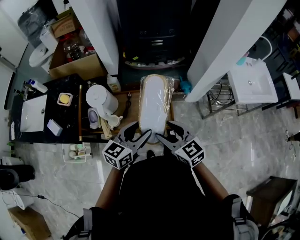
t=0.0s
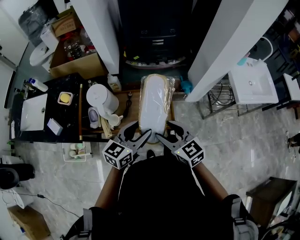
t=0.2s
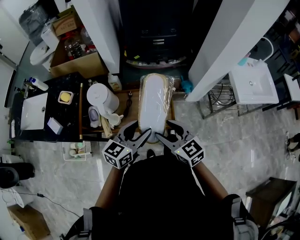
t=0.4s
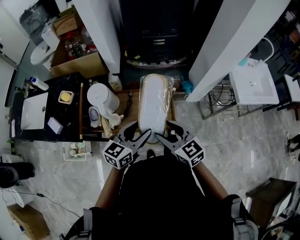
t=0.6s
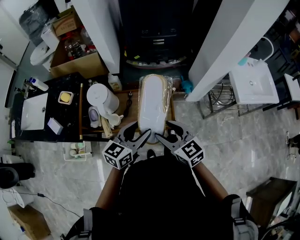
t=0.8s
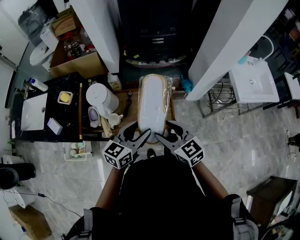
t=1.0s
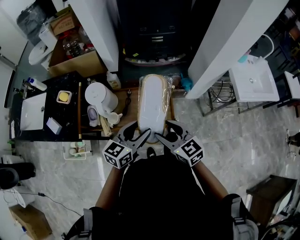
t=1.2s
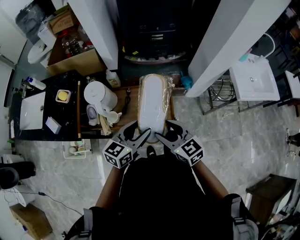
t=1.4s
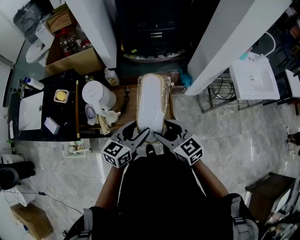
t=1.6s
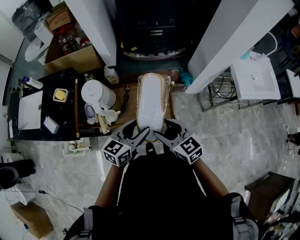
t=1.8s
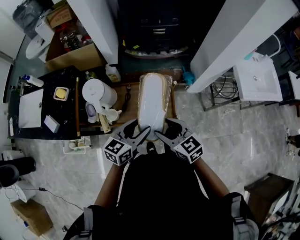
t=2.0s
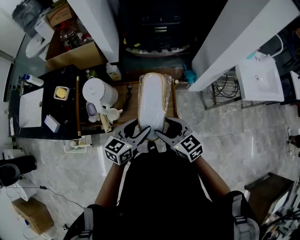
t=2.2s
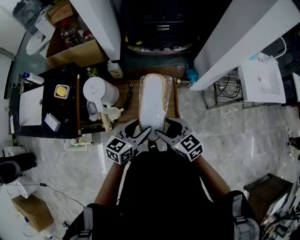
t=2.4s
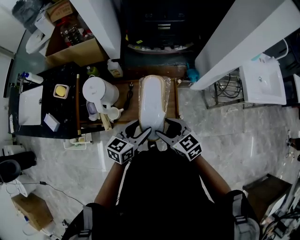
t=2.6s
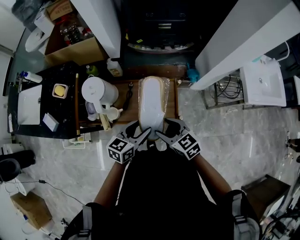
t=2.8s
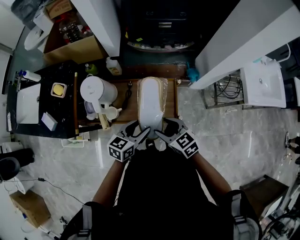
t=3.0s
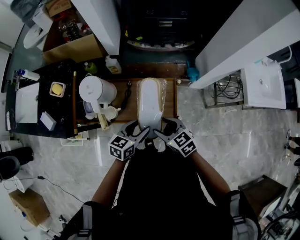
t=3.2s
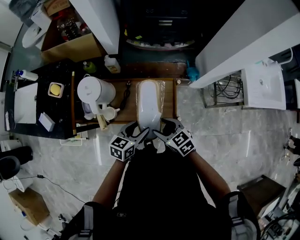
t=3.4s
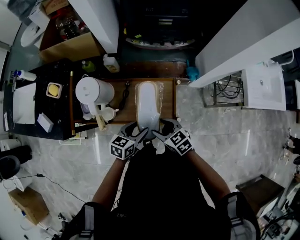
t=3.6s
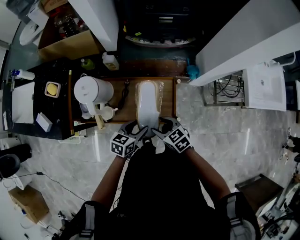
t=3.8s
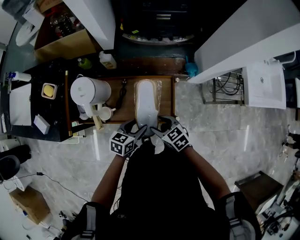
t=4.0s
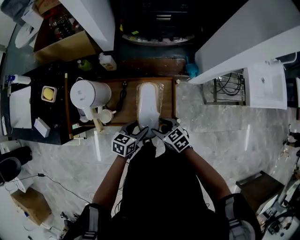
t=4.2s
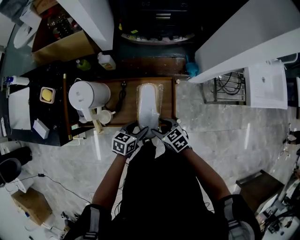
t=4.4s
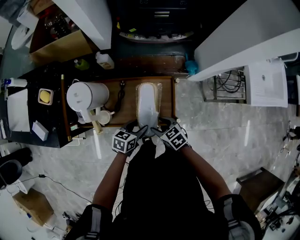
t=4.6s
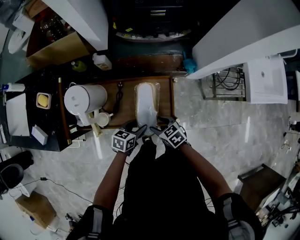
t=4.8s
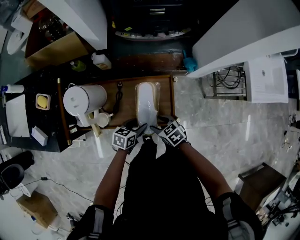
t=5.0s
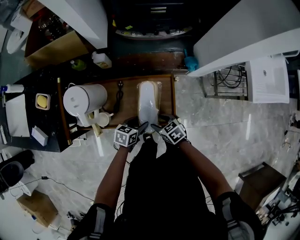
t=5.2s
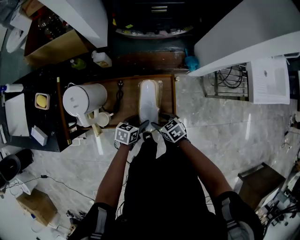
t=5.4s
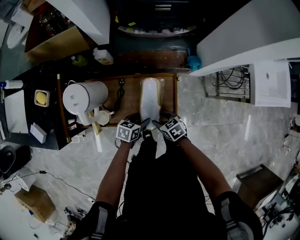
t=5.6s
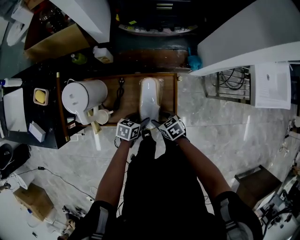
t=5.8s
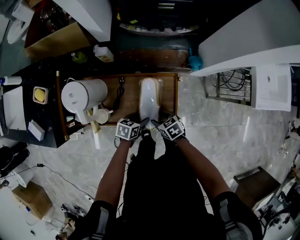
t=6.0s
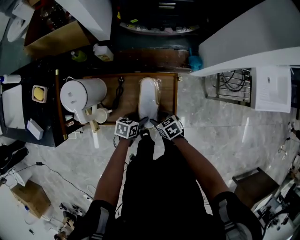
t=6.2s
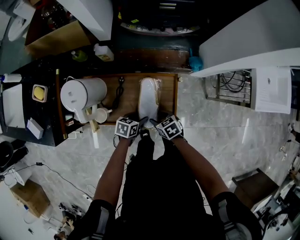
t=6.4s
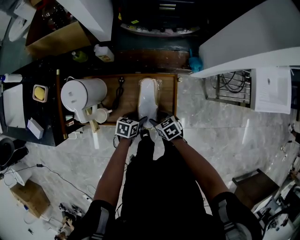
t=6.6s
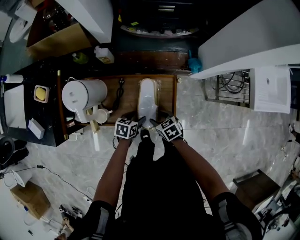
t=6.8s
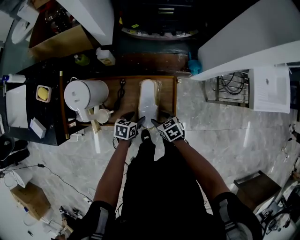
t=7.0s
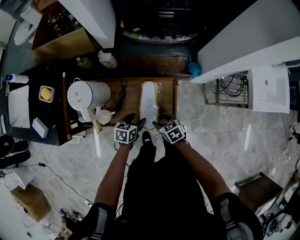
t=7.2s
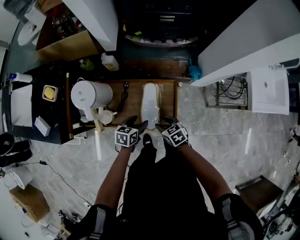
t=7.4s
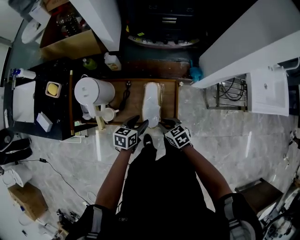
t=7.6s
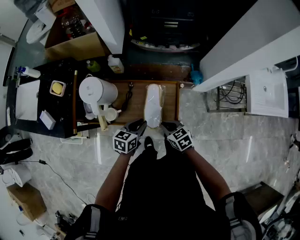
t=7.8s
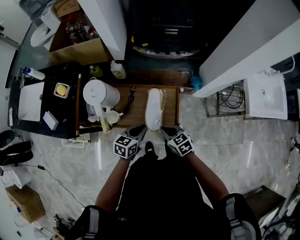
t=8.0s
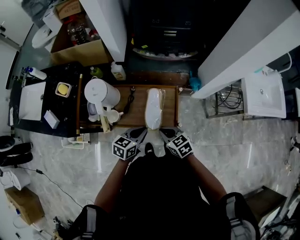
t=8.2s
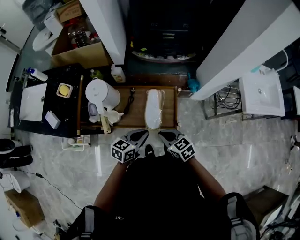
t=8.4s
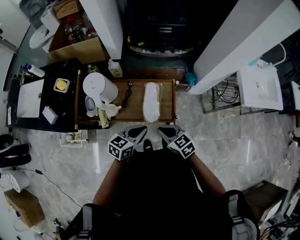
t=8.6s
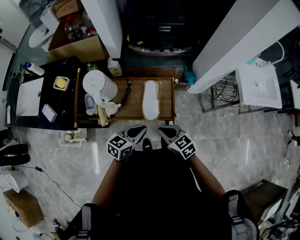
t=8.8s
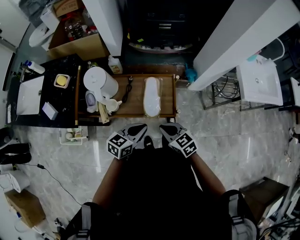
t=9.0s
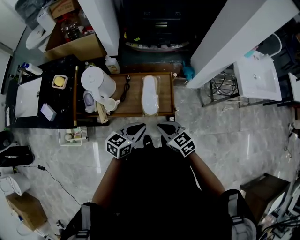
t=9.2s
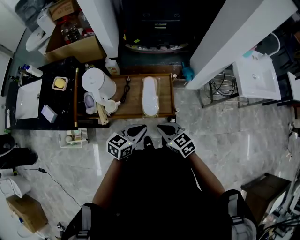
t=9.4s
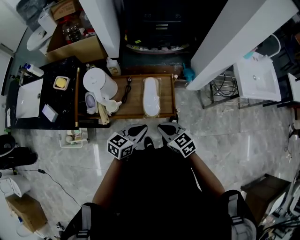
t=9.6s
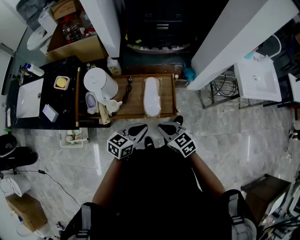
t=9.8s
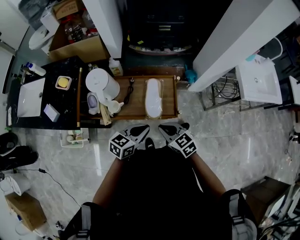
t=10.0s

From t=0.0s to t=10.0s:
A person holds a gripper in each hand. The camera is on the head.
From t=0.0s to t=1.4s: There are only small adjustments of the grippers.
From t=1.4s to t=2.8s: The grippers both shift downward by approximately 10 cm.
From t=2.8s to t=4.2s: Both grippers travel together downward, approximately 15 cm.
From t=4.2s to t=5.8s: The grippers both shift downward by some 10 cm.
From t=5.8s to t=7.2s: The grippers move only a little.
From t=7.2s to t=8.6s: Both grippers travel together upward and backward, roughly 20 cm. The right gripper swivels approximately 20 degrees, and closes up. The left gripper turns by approximately 30 degrees, and closes up.
From t=8.6s to t=10.0s: The grippers stay close to where they were, moving slightly.

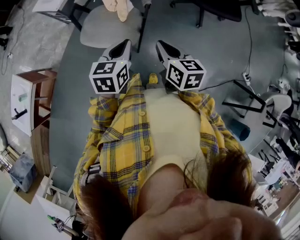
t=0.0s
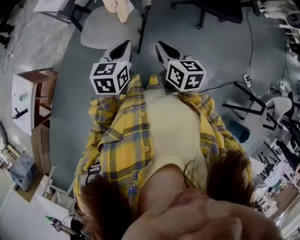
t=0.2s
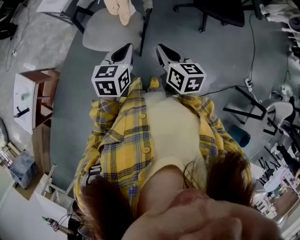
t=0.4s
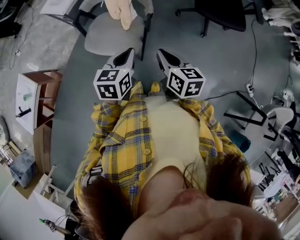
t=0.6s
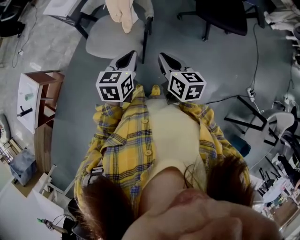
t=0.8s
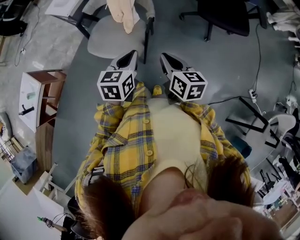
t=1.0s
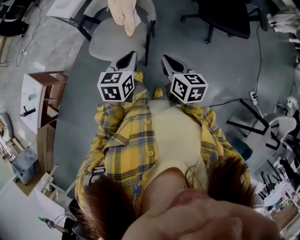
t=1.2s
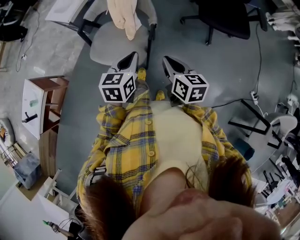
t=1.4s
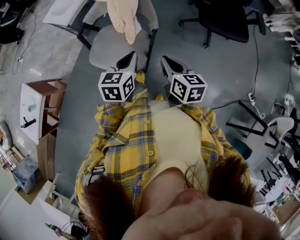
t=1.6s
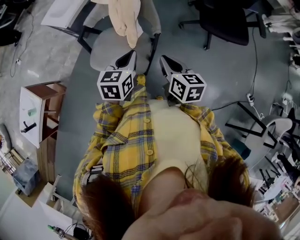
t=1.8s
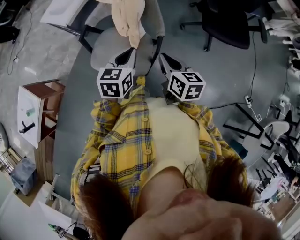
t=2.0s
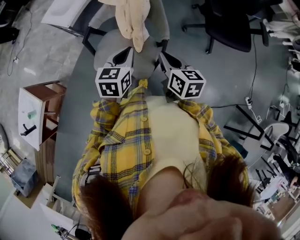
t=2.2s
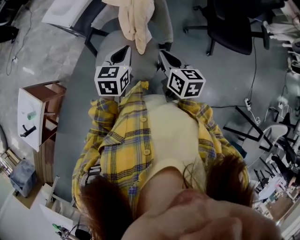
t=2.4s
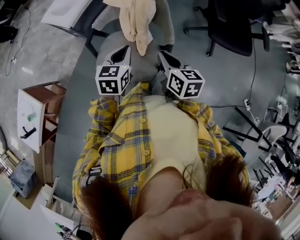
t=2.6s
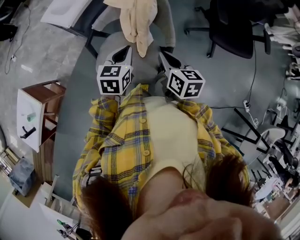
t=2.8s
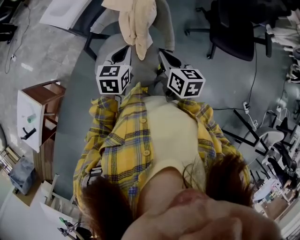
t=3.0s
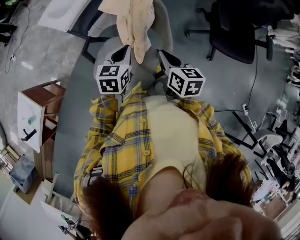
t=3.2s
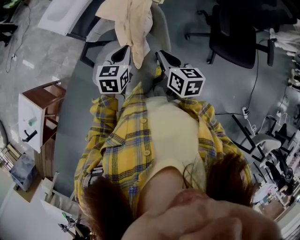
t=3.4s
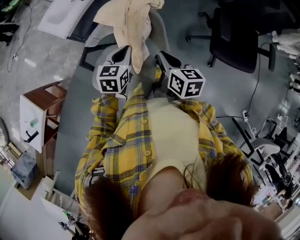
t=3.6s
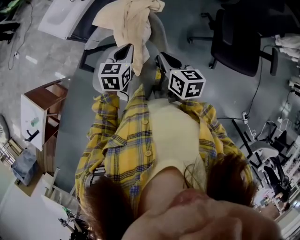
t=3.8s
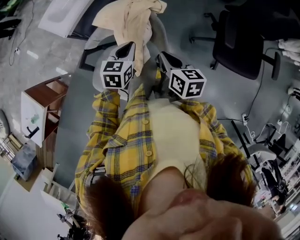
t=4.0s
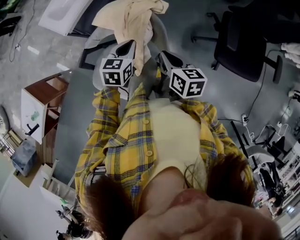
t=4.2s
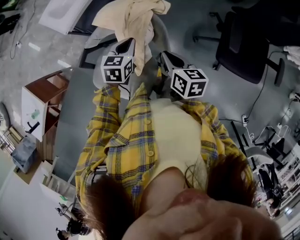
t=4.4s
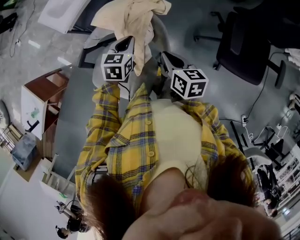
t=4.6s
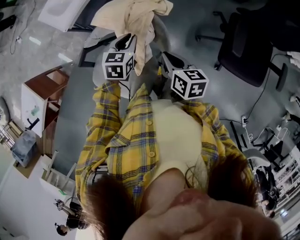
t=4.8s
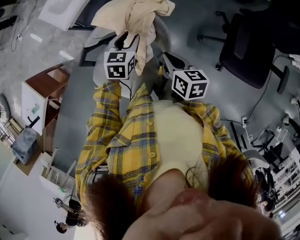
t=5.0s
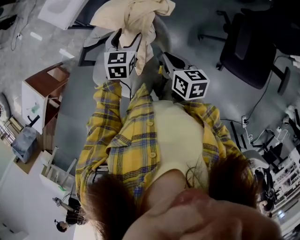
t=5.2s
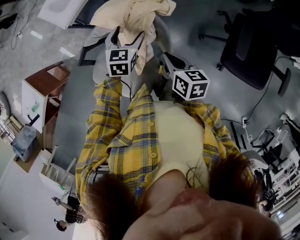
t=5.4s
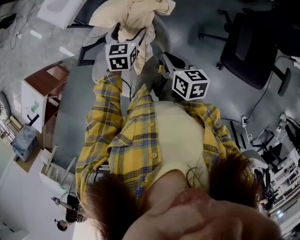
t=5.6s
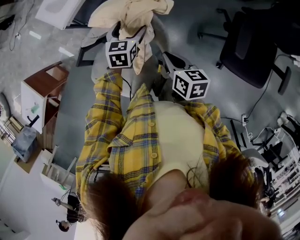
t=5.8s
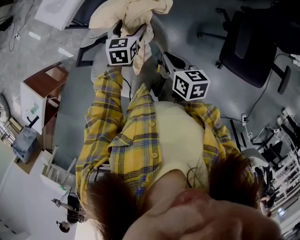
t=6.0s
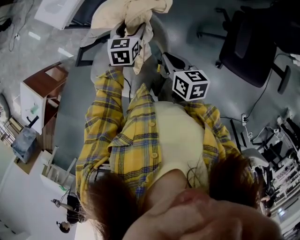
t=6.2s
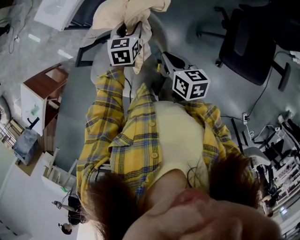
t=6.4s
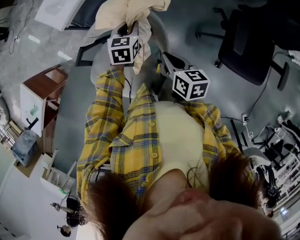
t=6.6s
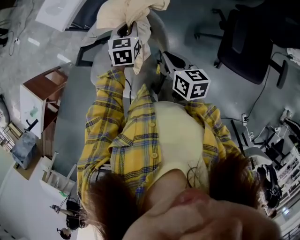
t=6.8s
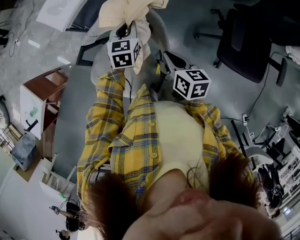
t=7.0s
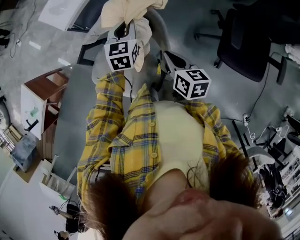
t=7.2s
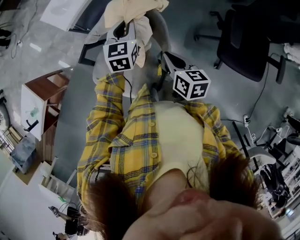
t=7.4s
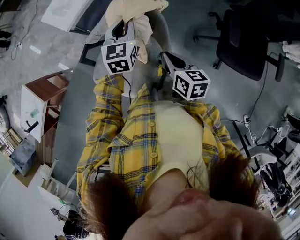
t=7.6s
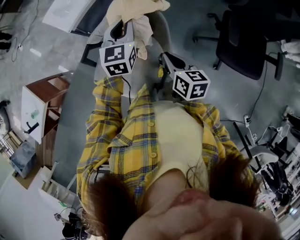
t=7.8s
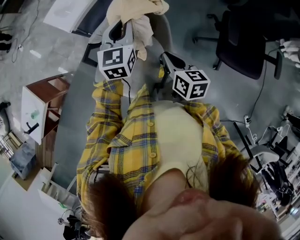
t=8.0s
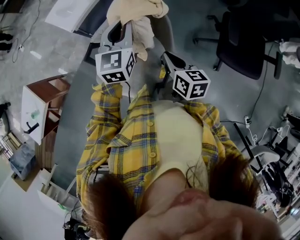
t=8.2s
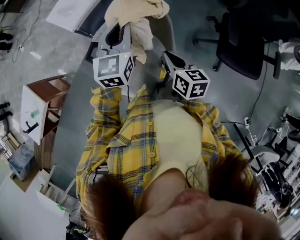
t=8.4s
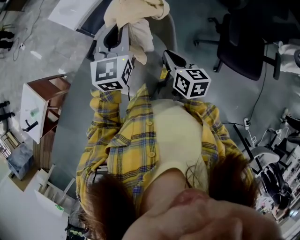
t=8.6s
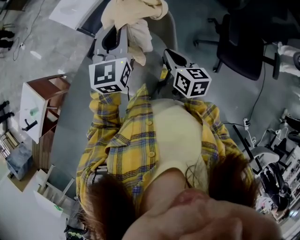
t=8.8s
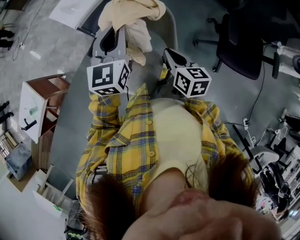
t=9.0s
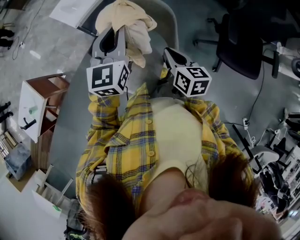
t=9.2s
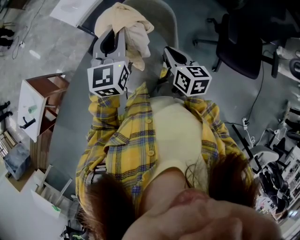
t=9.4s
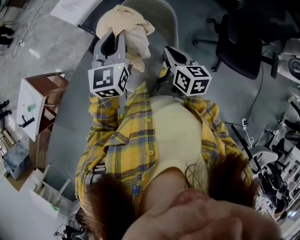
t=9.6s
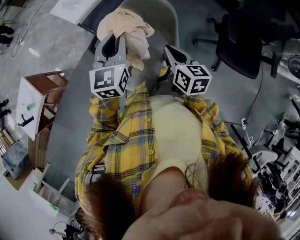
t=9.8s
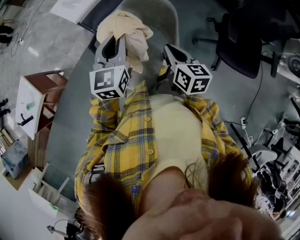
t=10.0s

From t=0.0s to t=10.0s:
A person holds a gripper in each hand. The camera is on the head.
From t=0.0s to t=1.4s: The left gripper goes about 5 cm forward; the right gripper ends up approximately 5 cm from where it was.
From t=1.4s to t=2.8s: The two grippers go some 25 cm forward and to the left.
From t=2.8s to t=4.2s: Both grippers travel together forward and to the right, roughly 20 cm.
From t=4.2s to t=5.8s: The left gripper moves forward and downward, approximately 10 cm, and opens its fingers, while the right gripper shifts by about 5 cm.
From t=5.8s to t=7.2s: The left gripper moves upward, roughly 5 cm, and closes; the right gripper moves approximately 5 cm.
From t=7.2s to t=8.6s: The right gripper heads upward, covering approximately 5 cm. Meanwhile the left gripper is displaced upward and backward by about 20 cm.
From t=8.6s to t=10.0s: The left gripper shifts approximately 10 cm backward and to the left.

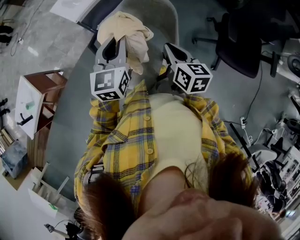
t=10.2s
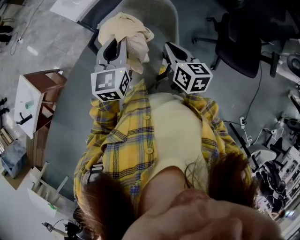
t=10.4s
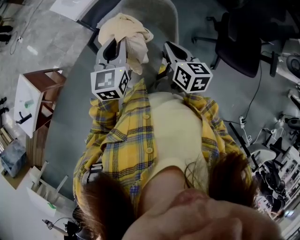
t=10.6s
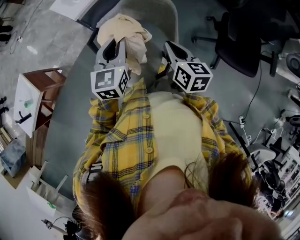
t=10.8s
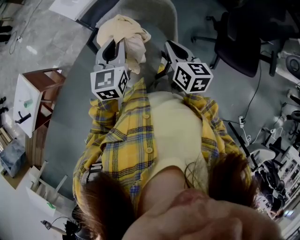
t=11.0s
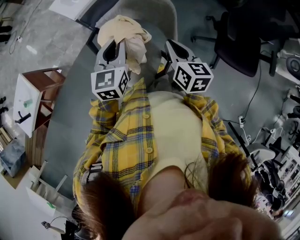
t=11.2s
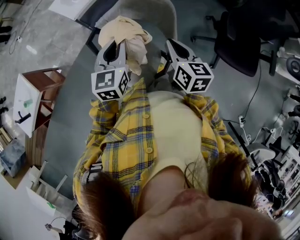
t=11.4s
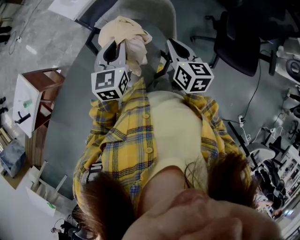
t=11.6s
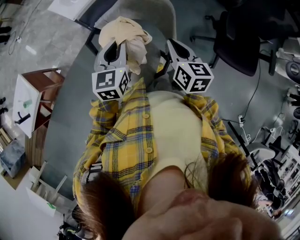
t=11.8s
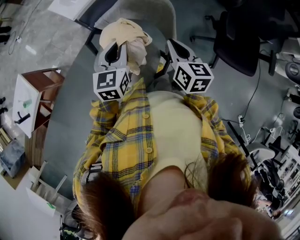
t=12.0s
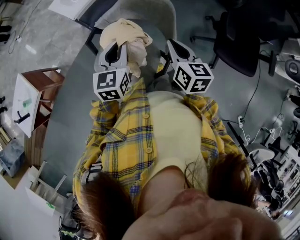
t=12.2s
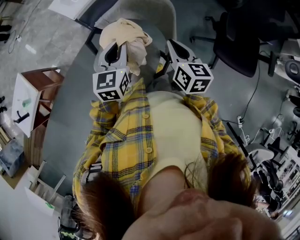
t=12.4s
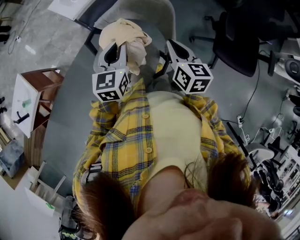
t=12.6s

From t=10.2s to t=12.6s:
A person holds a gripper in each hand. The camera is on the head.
From t=10.2s to t=11.4s: The grippers make only small movements.
From t=11.4s to t=12.6s: Both grippers stay put.

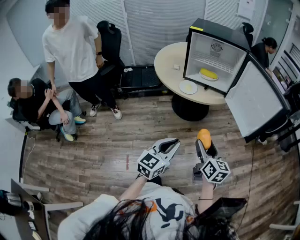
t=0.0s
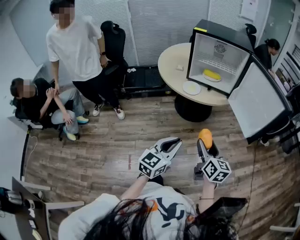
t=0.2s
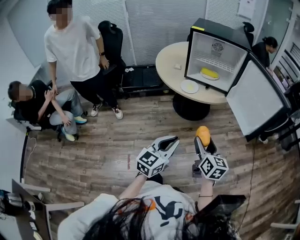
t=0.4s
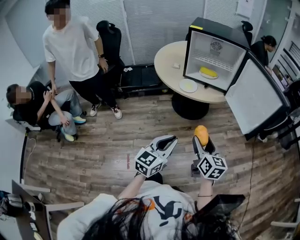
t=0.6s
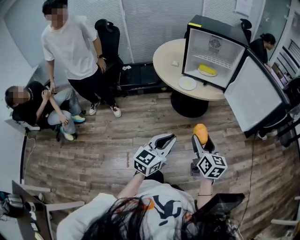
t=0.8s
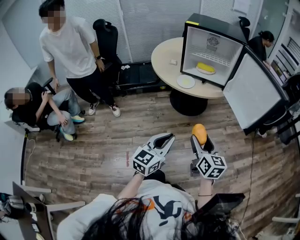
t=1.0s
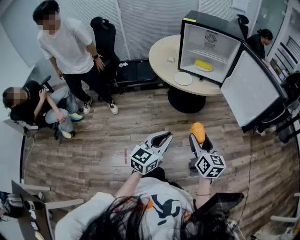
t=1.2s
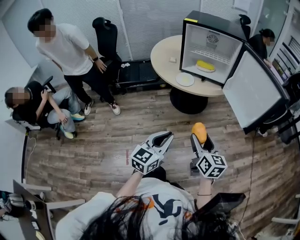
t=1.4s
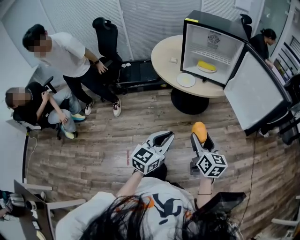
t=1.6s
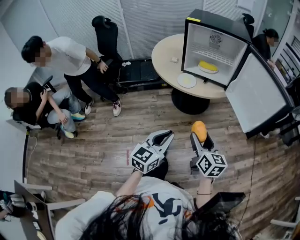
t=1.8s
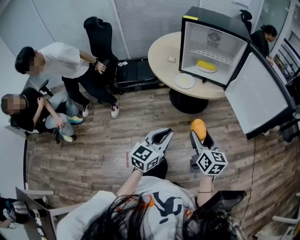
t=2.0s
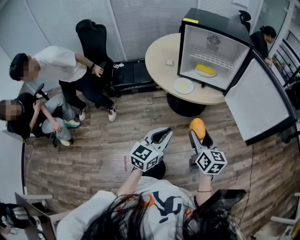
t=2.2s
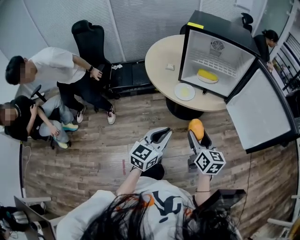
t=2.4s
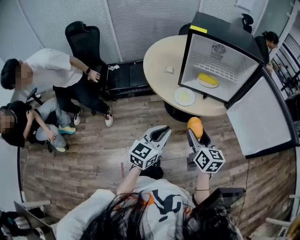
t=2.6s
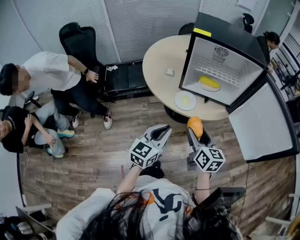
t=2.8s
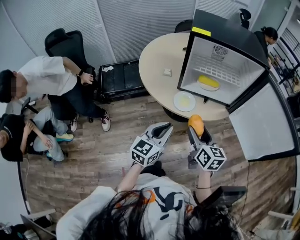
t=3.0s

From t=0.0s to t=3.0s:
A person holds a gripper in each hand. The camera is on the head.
From t=0.0s to t=1.6s: The grippers stay close to where they were, moving slightly.
From t=1.6s to t=3.0s: The left gripper shifts approximately 30 cm forward, while the right gripper is displaced forward and to the left by some 25 cm.
